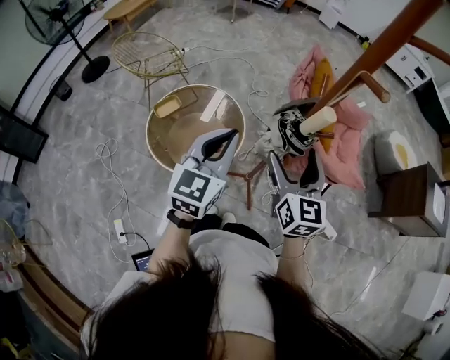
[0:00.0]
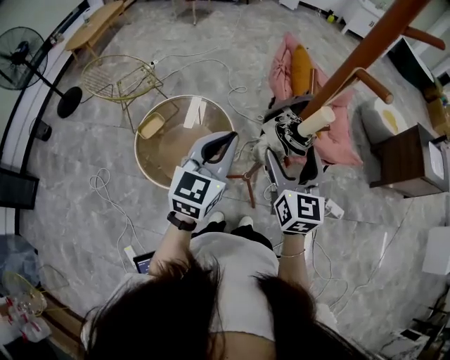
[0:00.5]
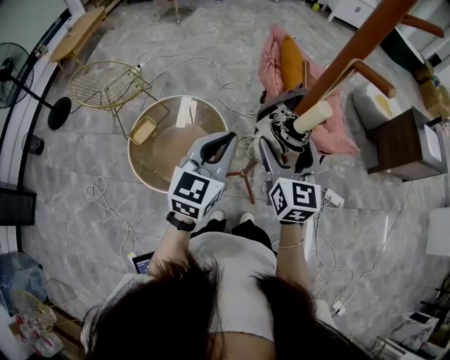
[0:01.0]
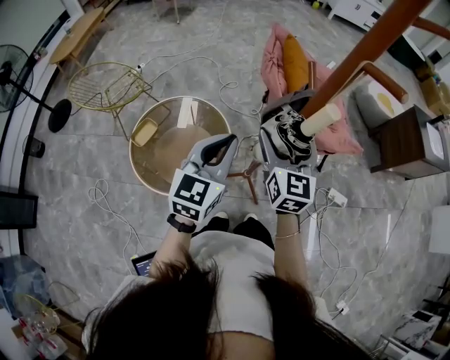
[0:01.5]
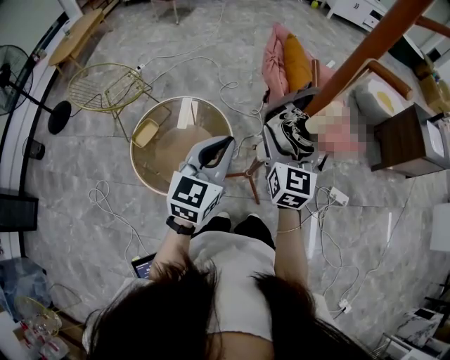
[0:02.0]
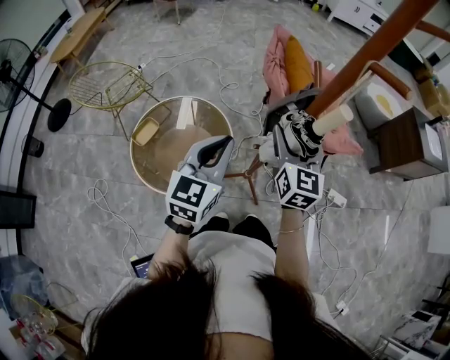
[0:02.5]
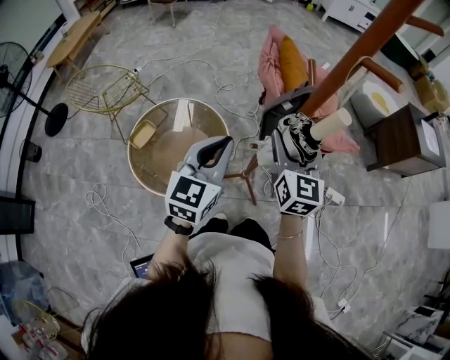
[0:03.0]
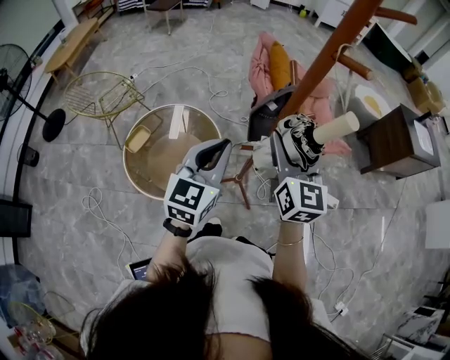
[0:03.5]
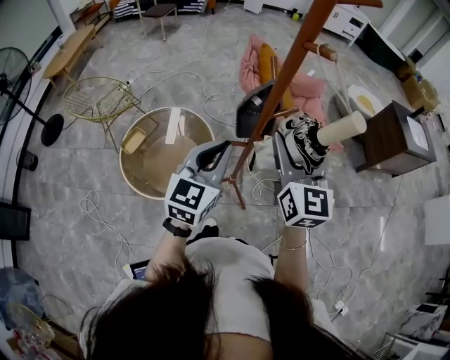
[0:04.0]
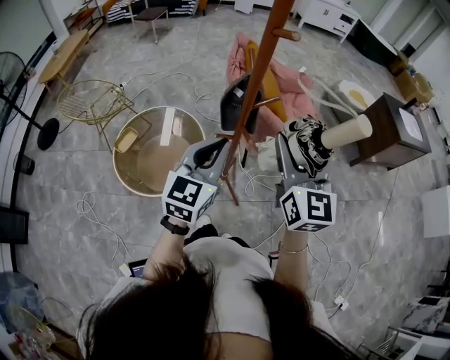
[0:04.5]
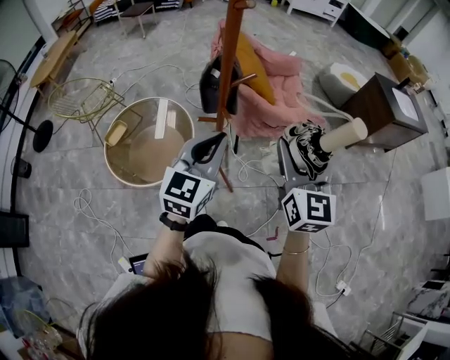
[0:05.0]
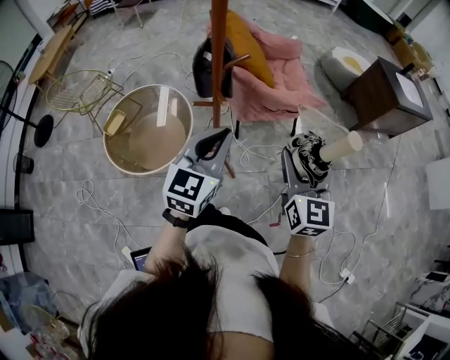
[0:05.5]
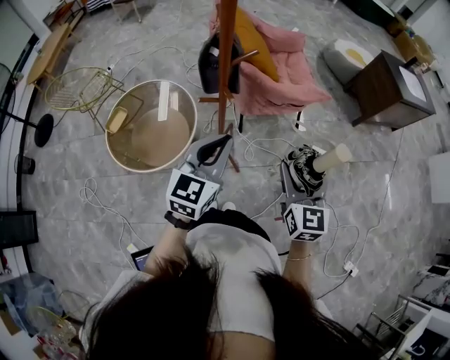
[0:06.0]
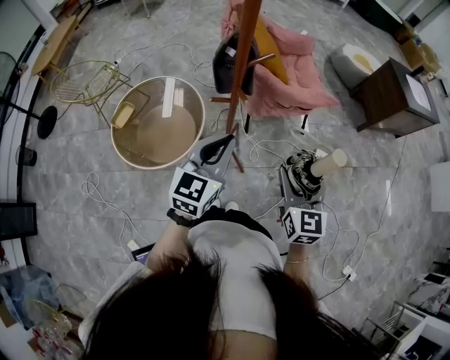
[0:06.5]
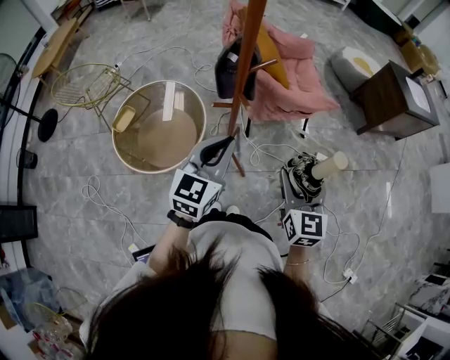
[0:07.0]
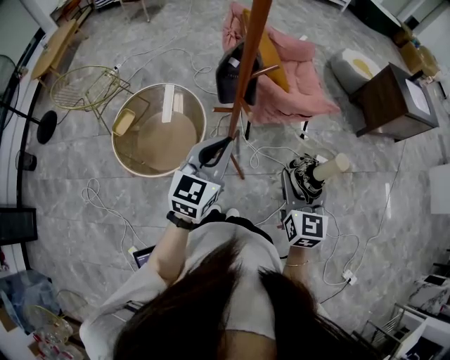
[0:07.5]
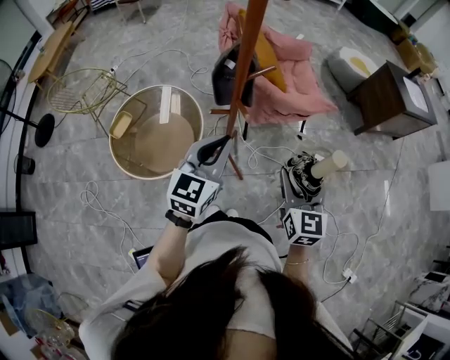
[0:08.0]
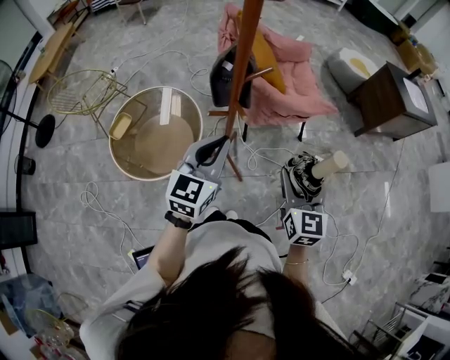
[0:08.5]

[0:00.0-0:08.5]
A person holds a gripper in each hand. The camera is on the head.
0:00.0 to 0:02.0: The right gripper heads forward, covering about 5 cm, and changes its angle by about 20 degrees. The left gripper shifts by approximately 5 cm.
0:02.0 to 0:04.0: The left gripper shifts about 5 cm to the right. The right gripper heads upward, backward and to the right, covering approximately 15 cm.
0:04.0 to 0:06.5: The left gripper heads to the right, downward and backward, covering some 15 cm. Meanwhile the right gripper is displaced downward, to the right and backward by approximately 25 cm.
0:06.5 to 0:08.5: The grippers stay close to where they were, moving slightly.

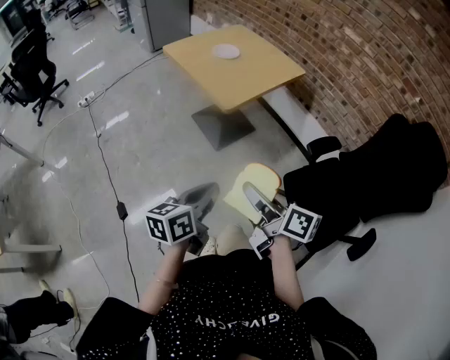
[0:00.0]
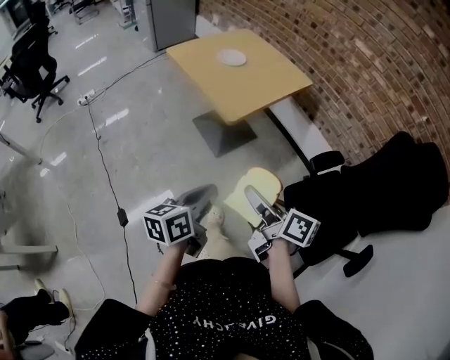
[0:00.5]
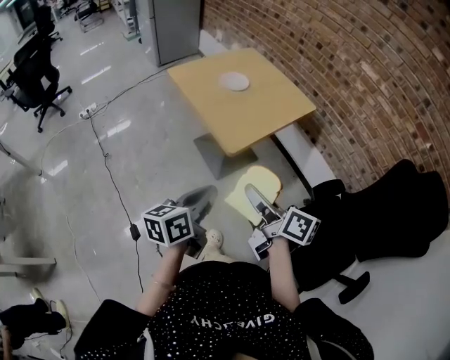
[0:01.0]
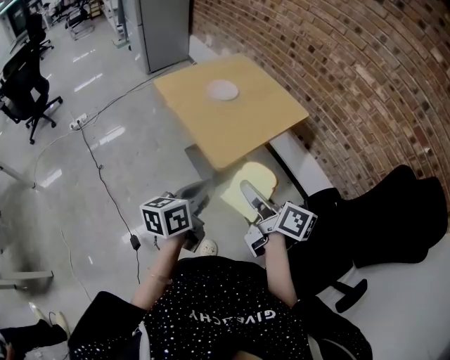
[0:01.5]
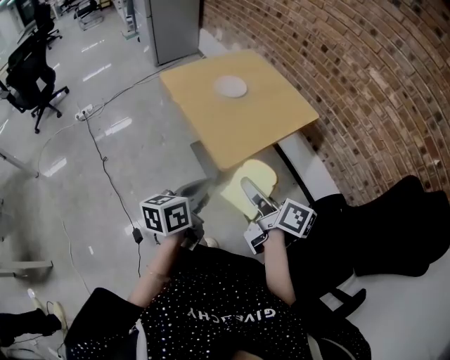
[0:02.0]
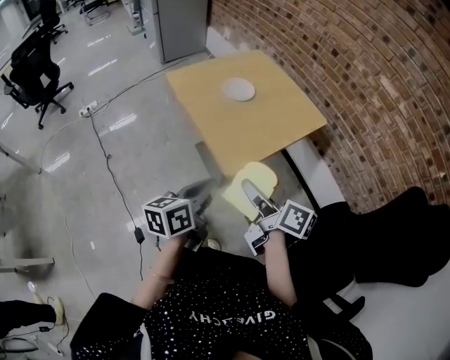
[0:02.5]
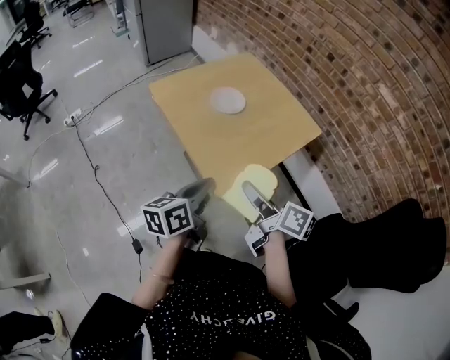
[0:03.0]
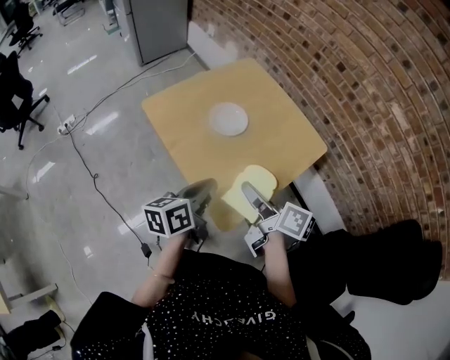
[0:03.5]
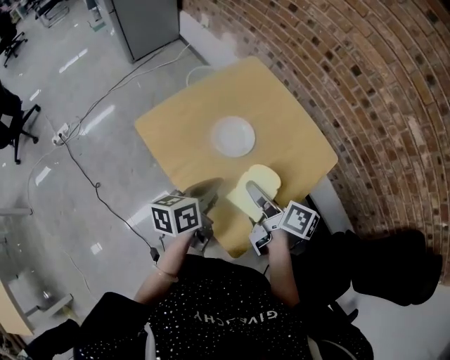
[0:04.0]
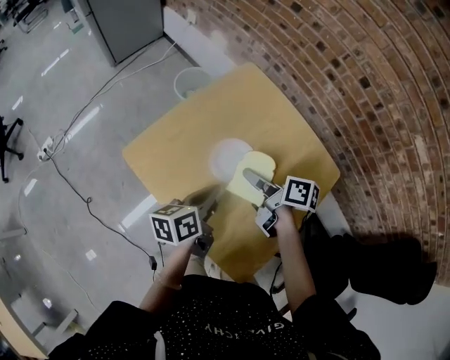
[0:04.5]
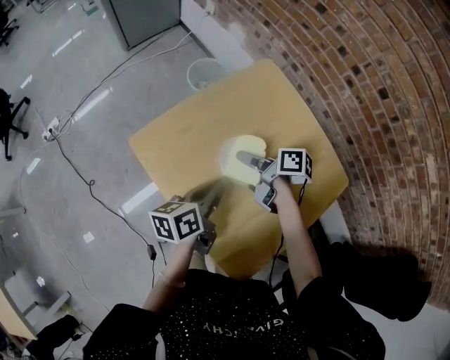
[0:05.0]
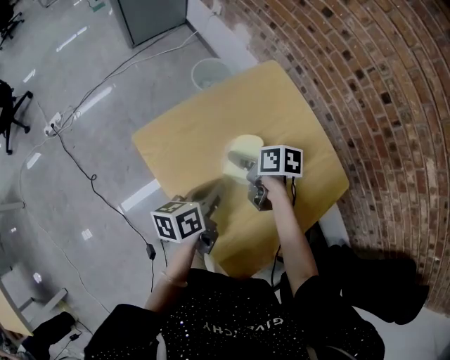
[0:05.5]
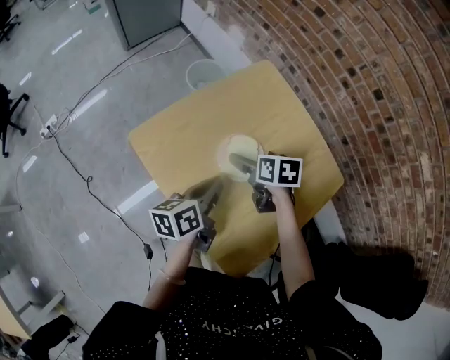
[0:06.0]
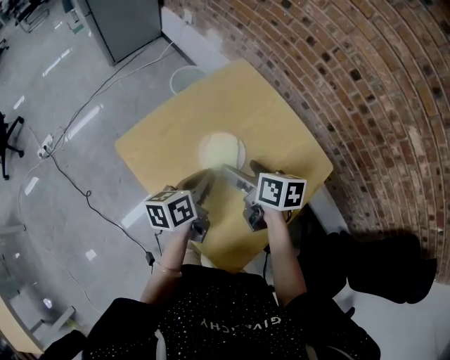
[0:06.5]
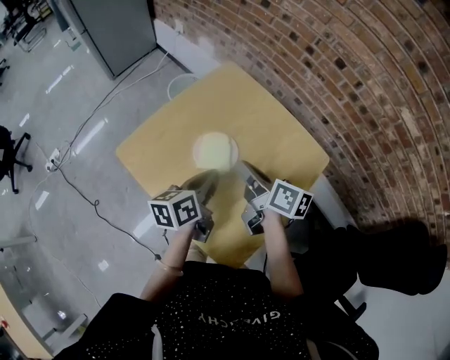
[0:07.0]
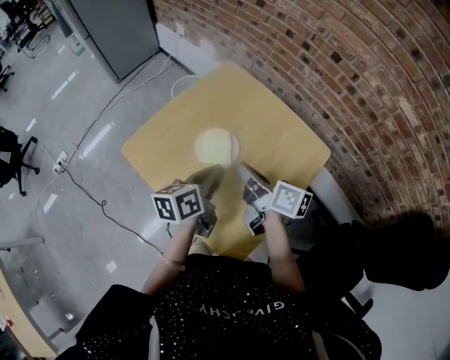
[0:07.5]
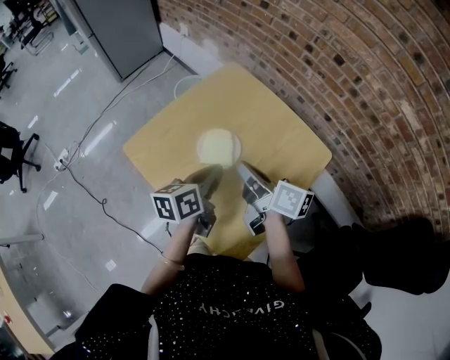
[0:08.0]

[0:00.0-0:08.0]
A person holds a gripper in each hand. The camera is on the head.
0:00.0 to 0:02.0: Both grippers move forward, about 30 cm.
0:02.0 to 0:04.0: Both grippers move forward, some 35 cm.
0:04.0 to 0:06.0: The right gripper is displaced forward and downward by roughly 20 cm, angles its fingers downward, by approximately 30 degrees, and opens its fingers; the left gripper heads forward and downward, covering roughly 10 cm.
0:06.0 to 0:08.0: The left gripper is displaced to the right and upward by roughly 10 cm. The right gripper heads upward and backward, covering approximately 20 cm, points its fingers about 40 degrees further upward, and closes its fingers.

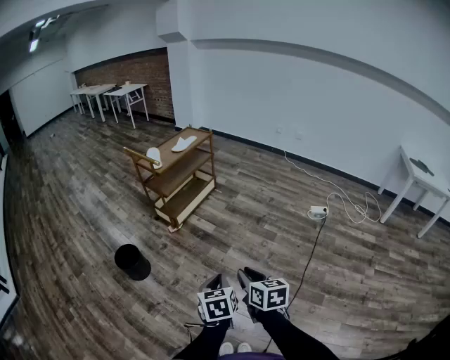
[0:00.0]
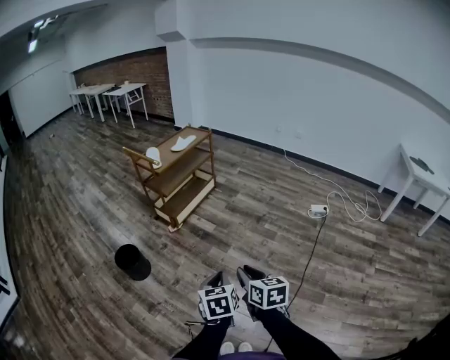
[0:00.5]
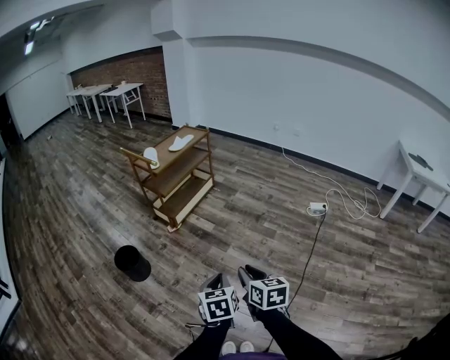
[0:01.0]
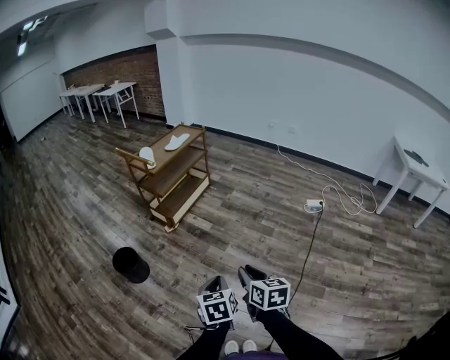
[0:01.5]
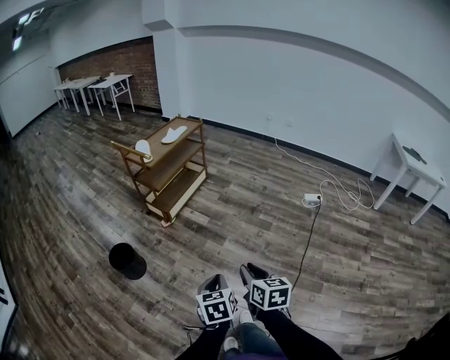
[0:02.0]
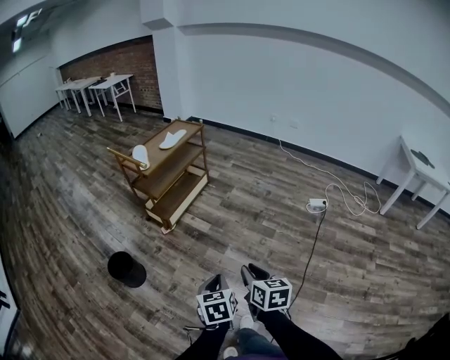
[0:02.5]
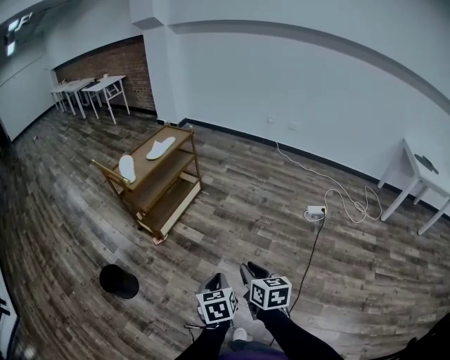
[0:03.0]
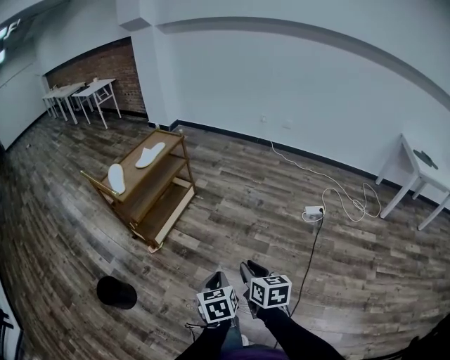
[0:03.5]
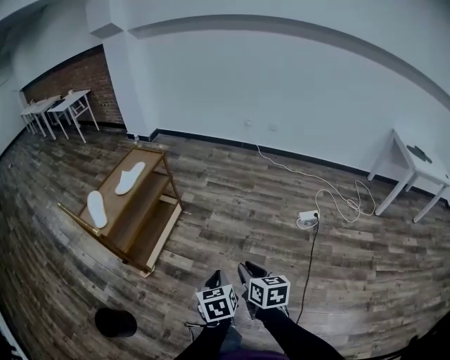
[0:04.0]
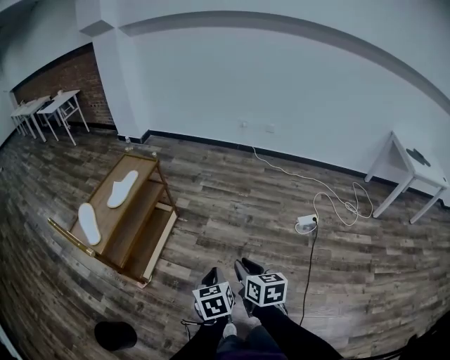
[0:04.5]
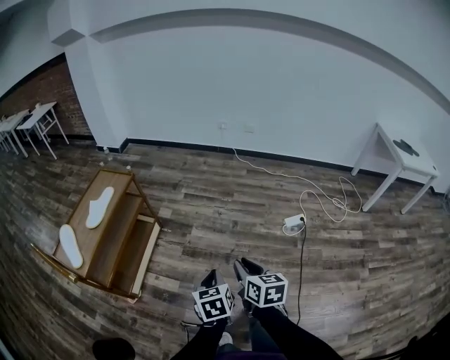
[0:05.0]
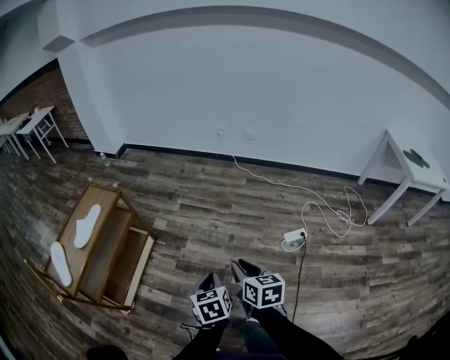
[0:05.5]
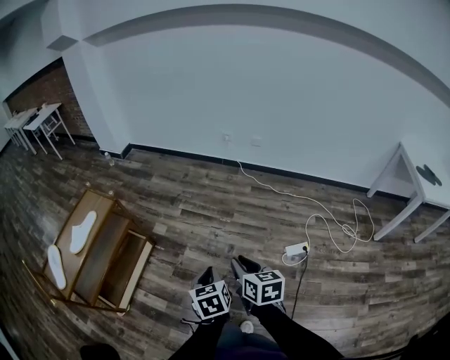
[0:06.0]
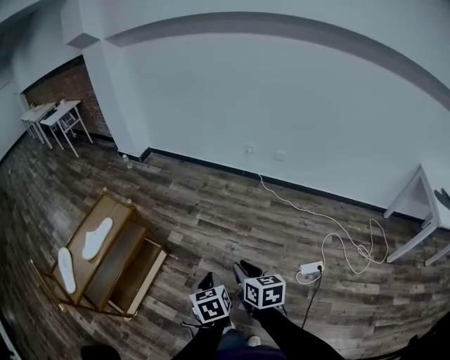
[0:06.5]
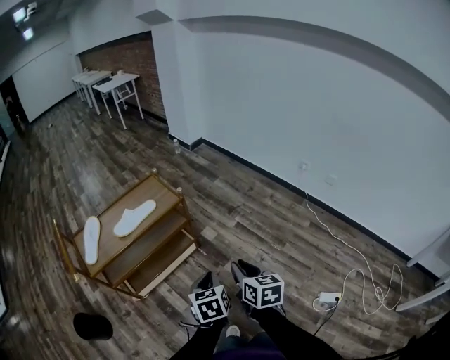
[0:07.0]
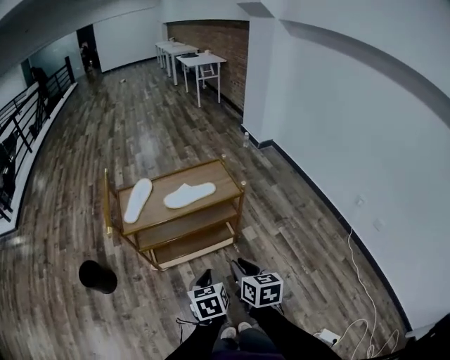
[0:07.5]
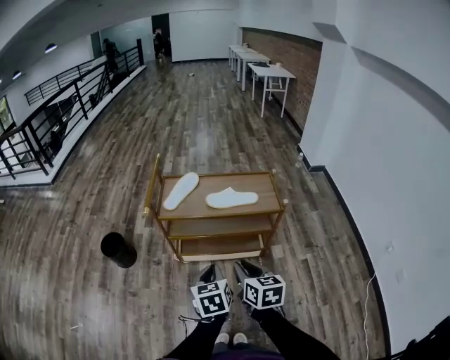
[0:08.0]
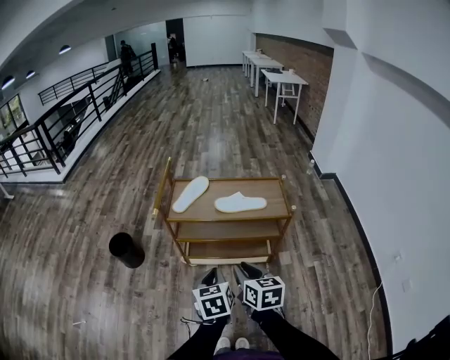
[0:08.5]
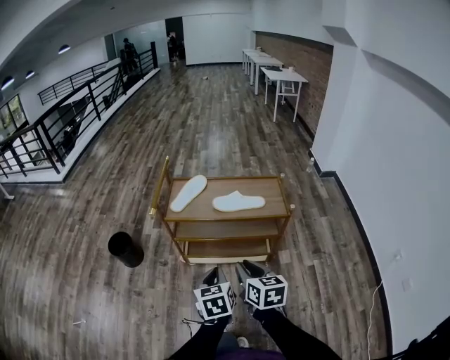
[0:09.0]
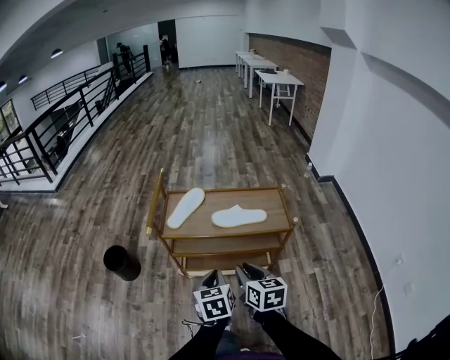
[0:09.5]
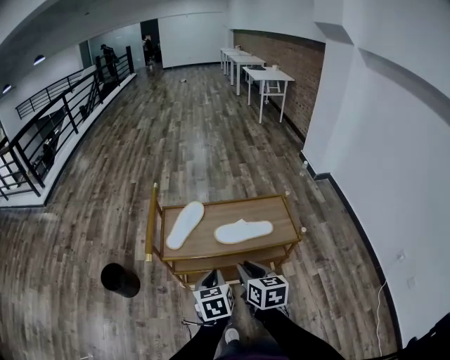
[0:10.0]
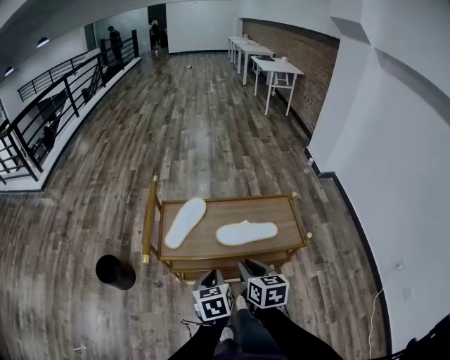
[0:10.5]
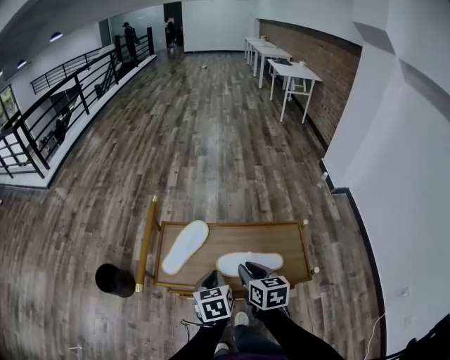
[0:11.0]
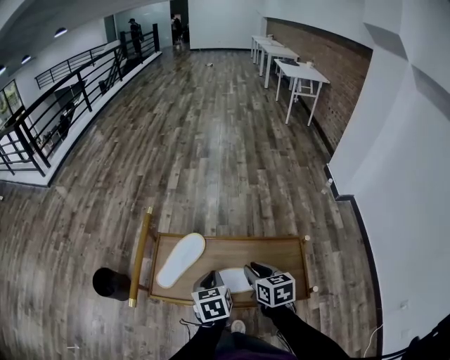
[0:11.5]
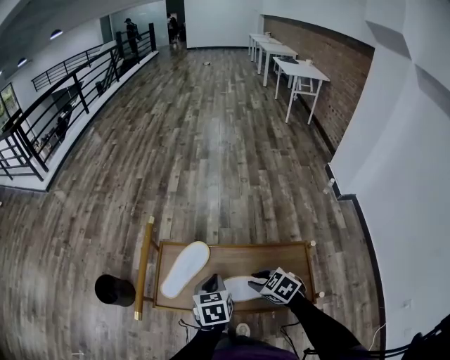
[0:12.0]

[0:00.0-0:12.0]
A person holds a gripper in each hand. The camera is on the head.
0:00.0 to 0:02.0: There are only small adjustments of the grippers.
0:02.0 to 0:04.0: The two grippers travel together, forward, roughly 40 cm.
0:04.0 to 0:06.0: The two grippers travel together, forward and to the right, about 40 cm.
0:06.0 to 0:08.0: The right gripper changes place by approximately 40 cm, and swivels approximately 70 degrees. The left gripper ends up approximately 35 cm from where it was, and swivels approximately 60 degrees.
0:08.0 to 0:10.0: Both grippers travel together forward, about 20 cm.
0:10.0 to 0:12.0: The left gripper moves forward, roughly 25 cm. Meanwhile the right gripper goes about 25 cm forward and downward, and turns by roughly 60 degrees.
